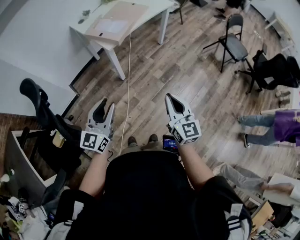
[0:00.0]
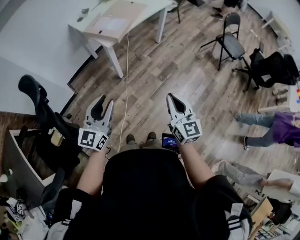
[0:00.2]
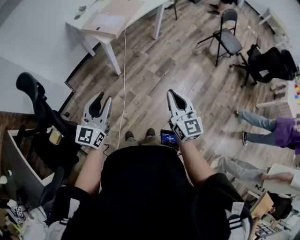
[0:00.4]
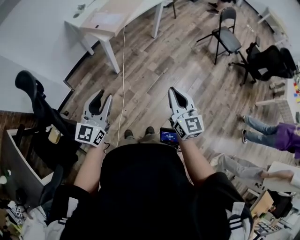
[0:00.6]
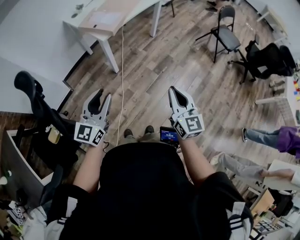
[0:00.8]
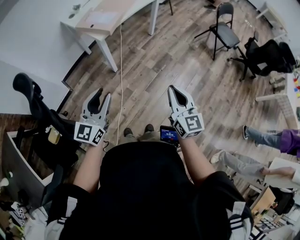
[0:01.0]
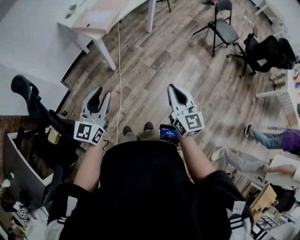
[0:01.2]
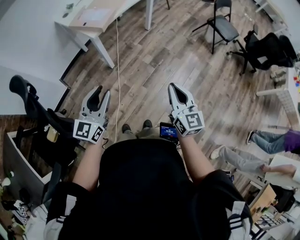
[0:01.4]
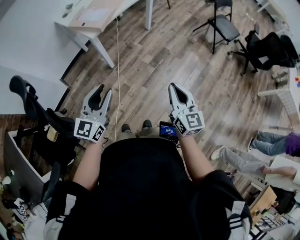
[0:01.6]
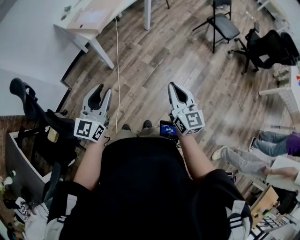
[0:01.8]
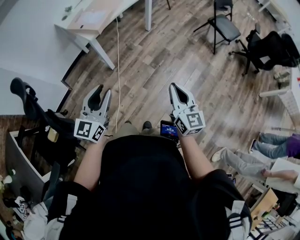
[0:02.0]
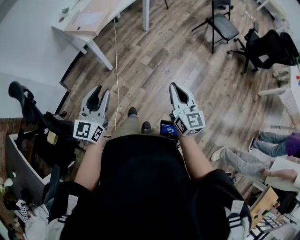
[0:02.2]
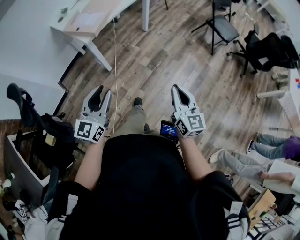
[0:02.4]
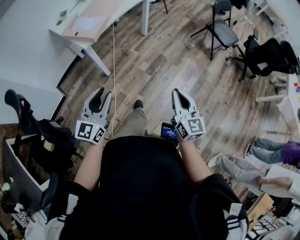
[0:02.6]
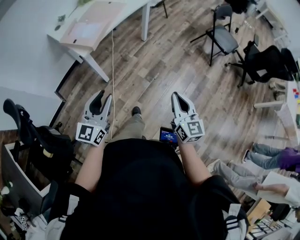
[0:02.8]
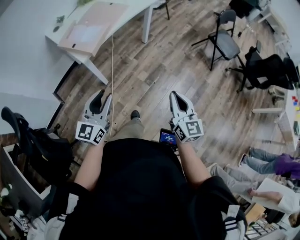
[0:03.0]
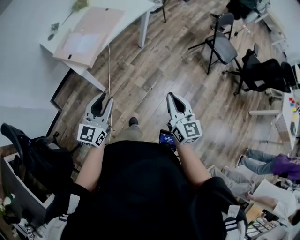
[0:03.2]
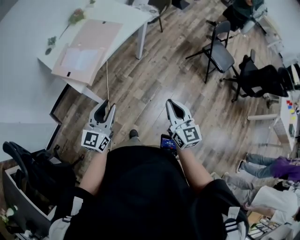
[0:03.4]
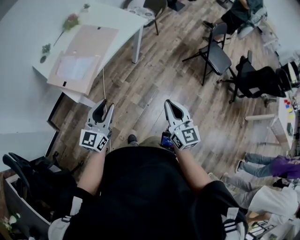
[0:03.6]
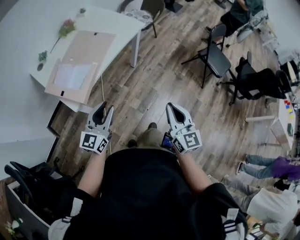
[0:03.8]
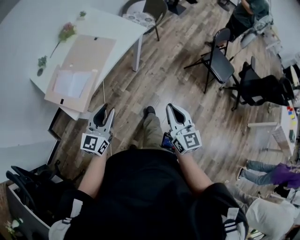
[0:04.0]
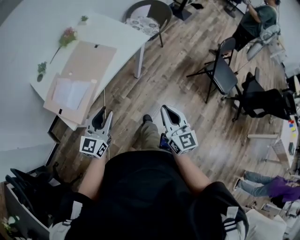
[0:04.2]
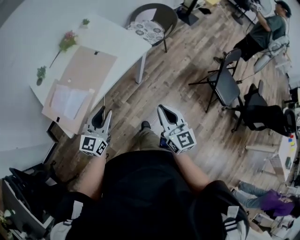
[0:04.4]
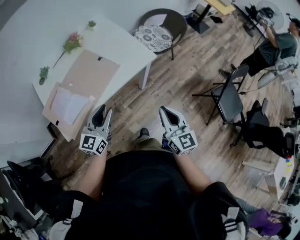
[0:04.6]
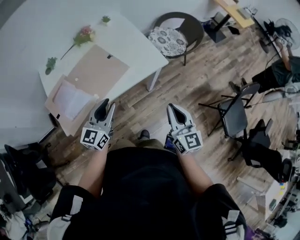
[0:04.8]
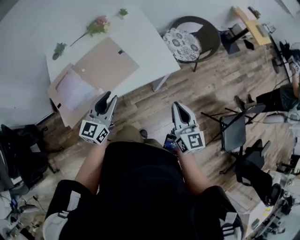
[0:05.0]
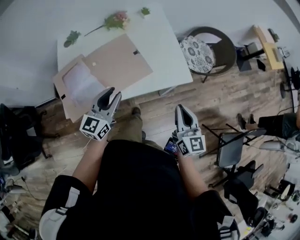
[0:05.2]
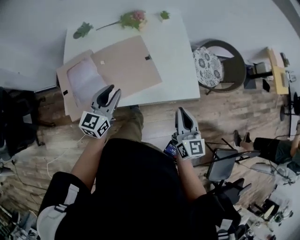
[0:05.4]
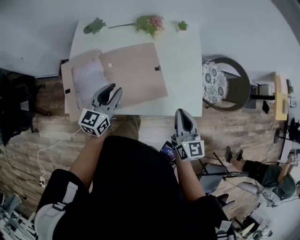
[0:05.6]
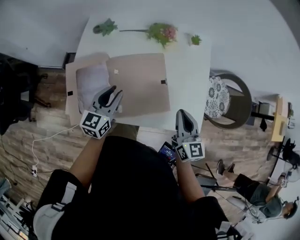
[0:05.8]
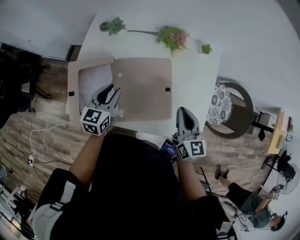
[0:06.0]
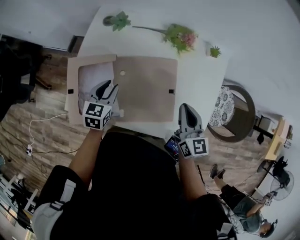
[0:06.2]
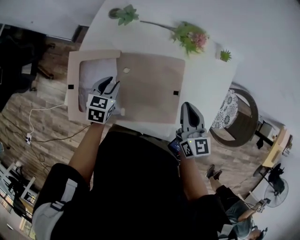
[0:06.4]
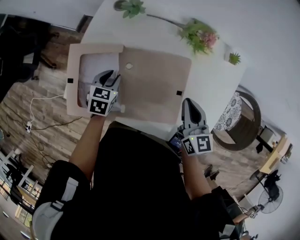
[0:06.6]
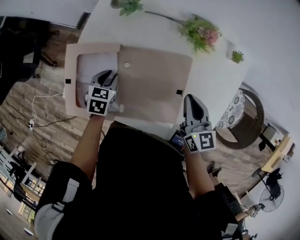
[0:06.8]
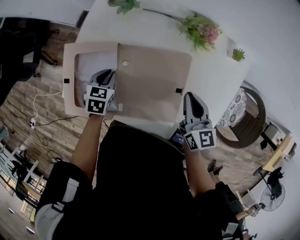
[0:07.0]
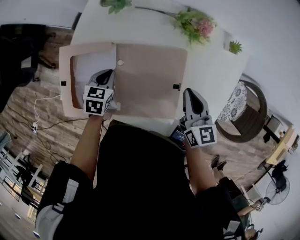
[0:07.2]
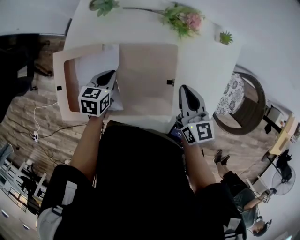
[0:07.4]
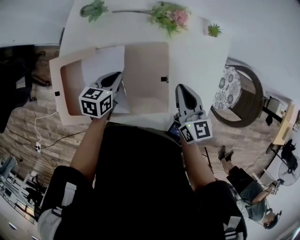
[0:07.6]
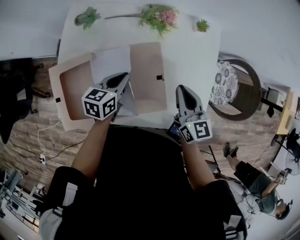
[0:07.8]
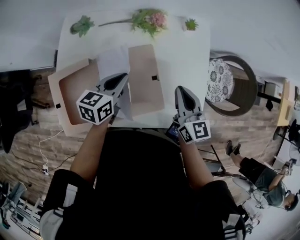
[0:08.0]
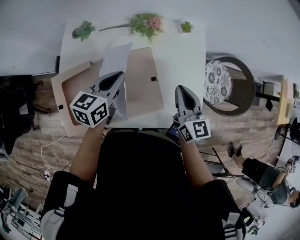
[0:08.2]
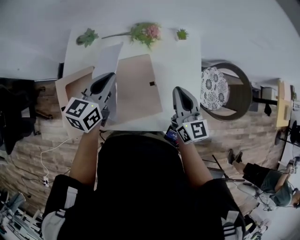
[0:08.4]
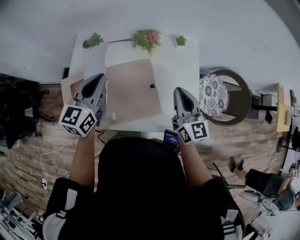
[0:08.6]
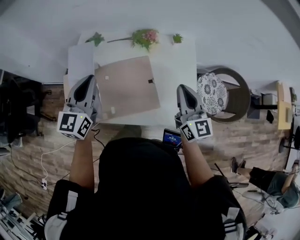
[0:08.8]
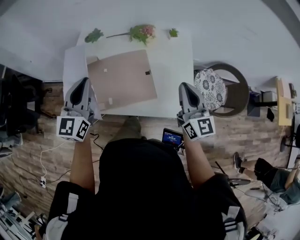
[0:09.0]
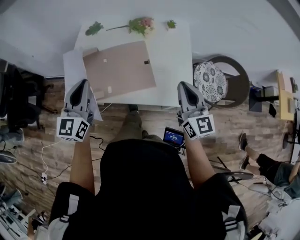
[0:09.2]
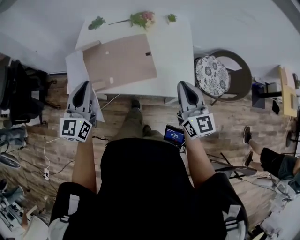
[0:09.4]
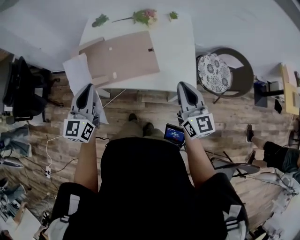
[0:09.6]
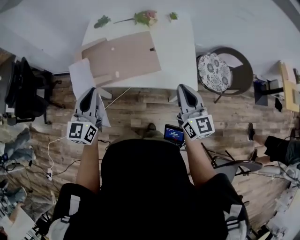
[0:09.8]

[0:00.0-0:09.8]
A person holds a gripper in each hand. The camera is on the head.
0:00.0 to 0:01.4: The left gripper ends up approximately 5 cm from where it was; the right gripper is displaced to the right and backward by roughly 10 cm.
0:01.4 to 0:02.8: The right gripper moves forward and to the right, about 15 cm, while the left gripper travels forward by roughly 15 cm.
0:02.8 to 0:04.2: The pair of grippers is taken forward, approximately 40 cm.
0:04.2 to 0:05.6: The left gripper ends up some 30 cm from where it was, and rotates some 50 degrees. Meanwhile the right gripper shifts by roughly 40 cm, and swivels about 40 degrees.
0:05.6 to 0:07.0: The left gripper moves downward, roughly 15 cm, and angles its fingers downward, by approximately 50 degrees; the right gripper moves roughly 25 cm, and changes its angle by about 30 degrees.
0:07.0 to 0:08.4: The left gripper heads upward, covering approximately 25 cm, and angles its fingers upward, by about 40 degrees. Meanwhile the right gripper goes about 10 cm upward, and turns by roughly 20 degrees.
0:08.4 to 0:09.8: Both grippers move backward, some 30 cm. The left gripper swivels about 30 degrees.

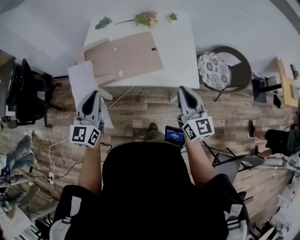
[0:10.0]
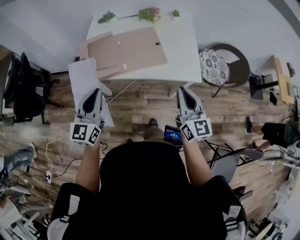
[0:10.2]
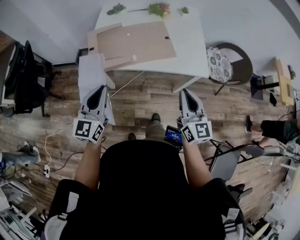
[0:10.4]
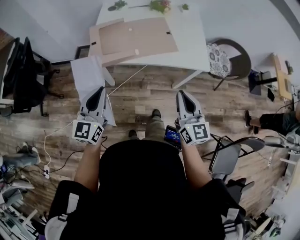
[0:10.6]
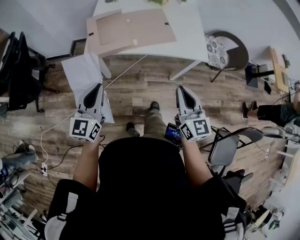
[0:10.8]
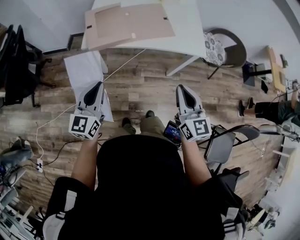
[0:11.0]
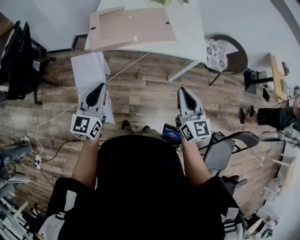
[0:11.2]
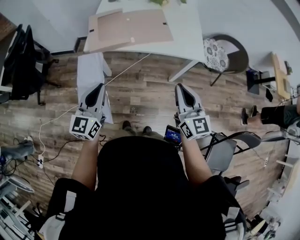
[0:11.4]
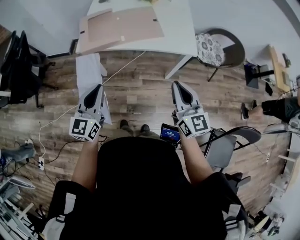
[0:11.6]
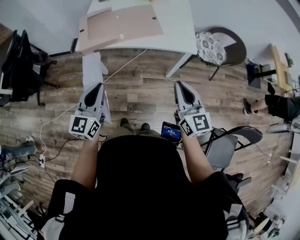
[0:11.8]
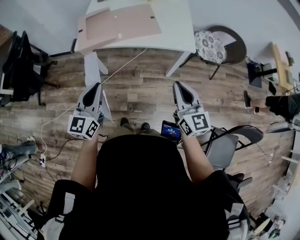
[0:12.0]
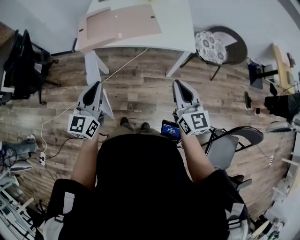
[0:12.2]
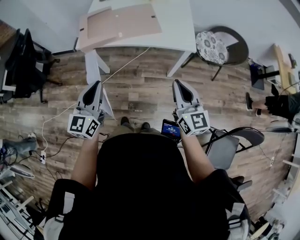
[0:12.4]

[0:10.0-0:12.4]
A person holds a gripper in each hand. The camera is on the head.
0:10.0 to 0:11.2: Both grippers move backward and to the left, about 20 cm.
0:11.2 to 0:12.4: The grippers both shift to the right by some 10 cm.

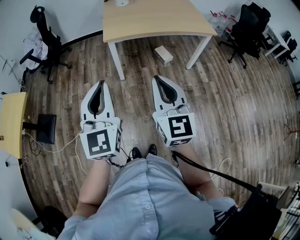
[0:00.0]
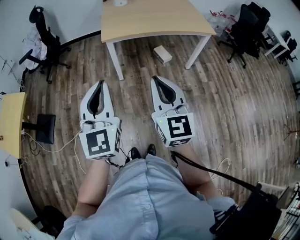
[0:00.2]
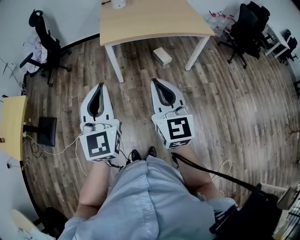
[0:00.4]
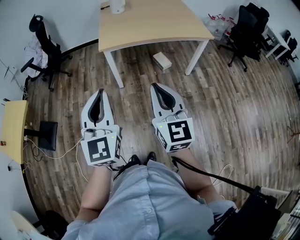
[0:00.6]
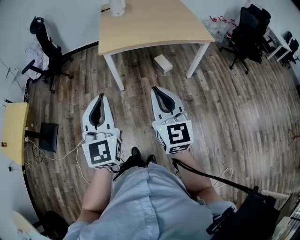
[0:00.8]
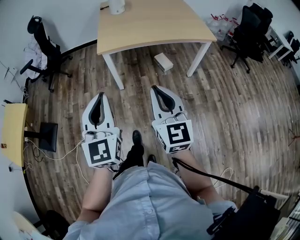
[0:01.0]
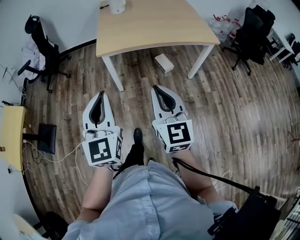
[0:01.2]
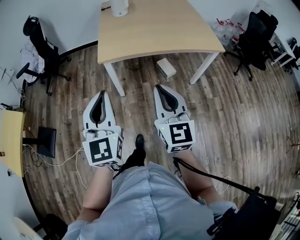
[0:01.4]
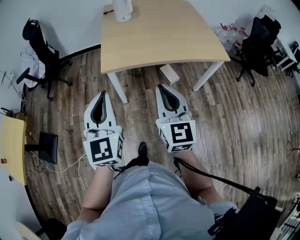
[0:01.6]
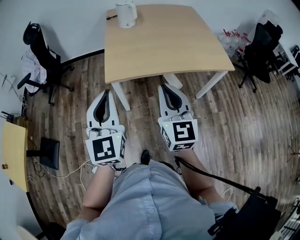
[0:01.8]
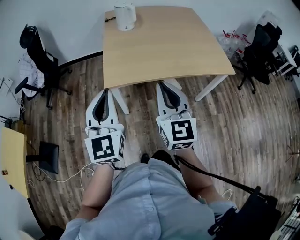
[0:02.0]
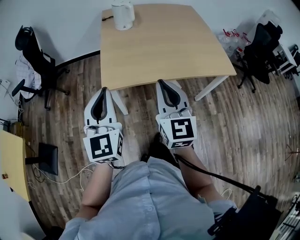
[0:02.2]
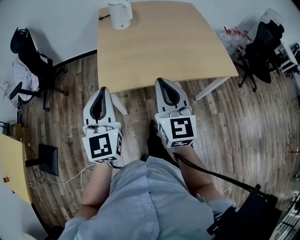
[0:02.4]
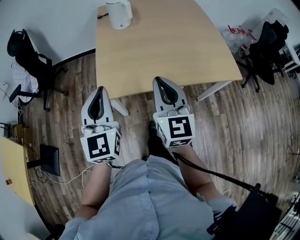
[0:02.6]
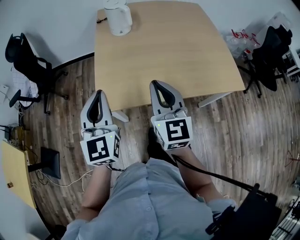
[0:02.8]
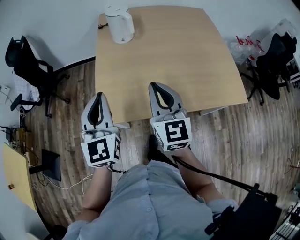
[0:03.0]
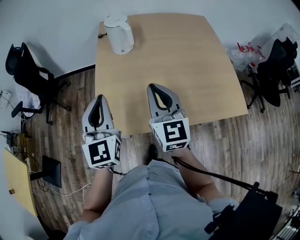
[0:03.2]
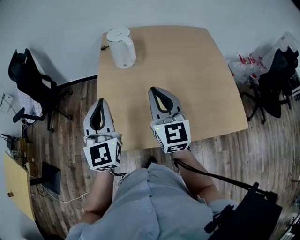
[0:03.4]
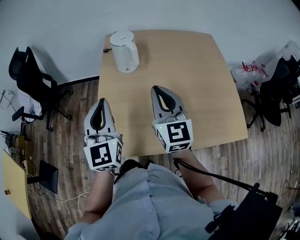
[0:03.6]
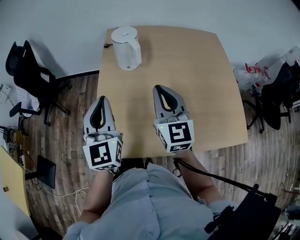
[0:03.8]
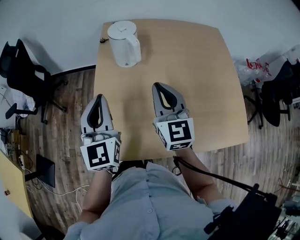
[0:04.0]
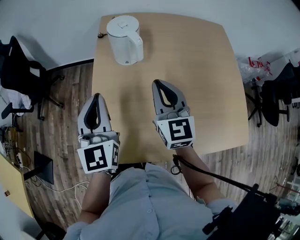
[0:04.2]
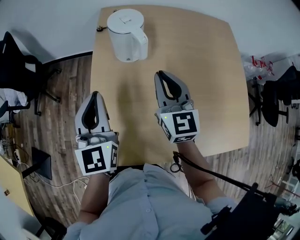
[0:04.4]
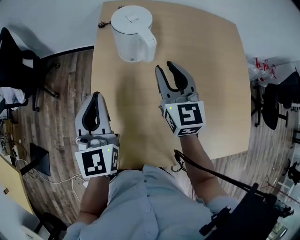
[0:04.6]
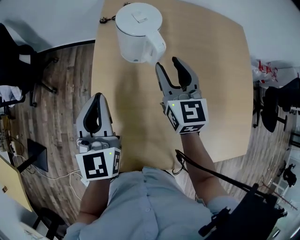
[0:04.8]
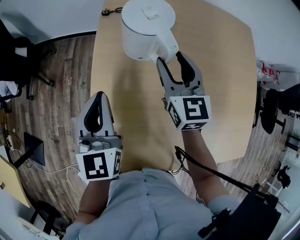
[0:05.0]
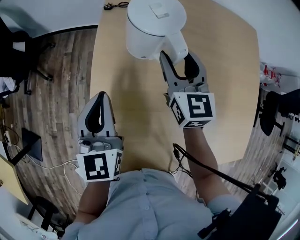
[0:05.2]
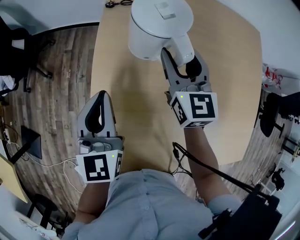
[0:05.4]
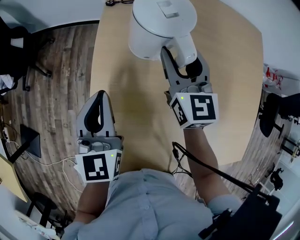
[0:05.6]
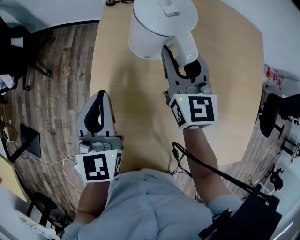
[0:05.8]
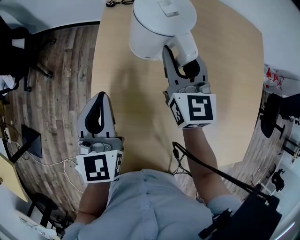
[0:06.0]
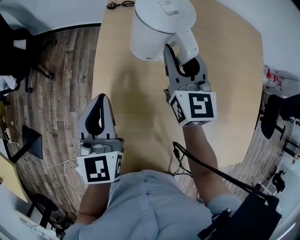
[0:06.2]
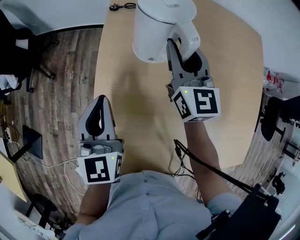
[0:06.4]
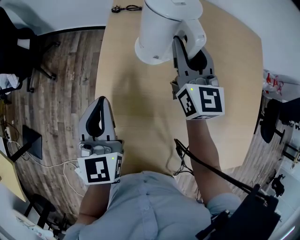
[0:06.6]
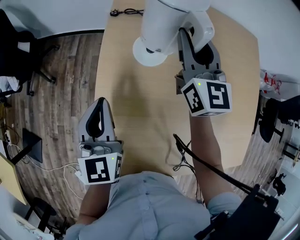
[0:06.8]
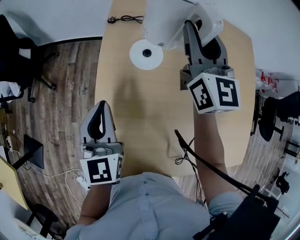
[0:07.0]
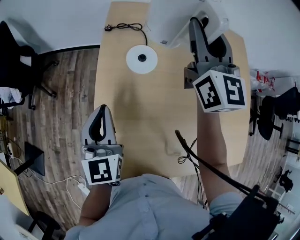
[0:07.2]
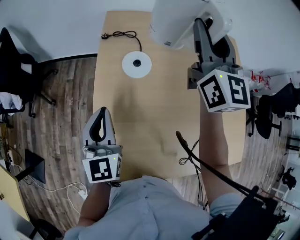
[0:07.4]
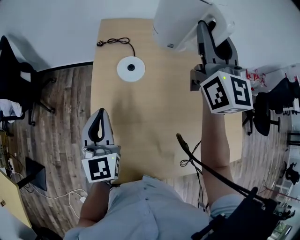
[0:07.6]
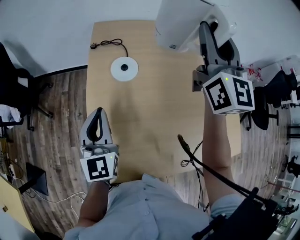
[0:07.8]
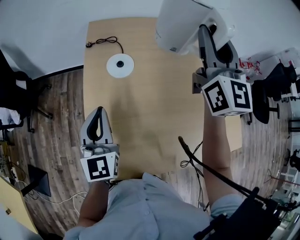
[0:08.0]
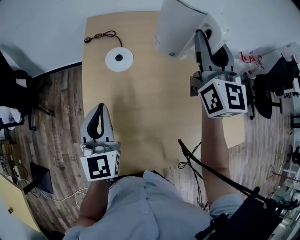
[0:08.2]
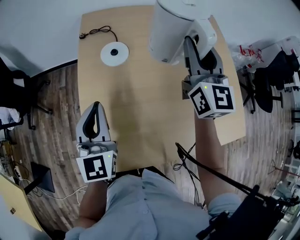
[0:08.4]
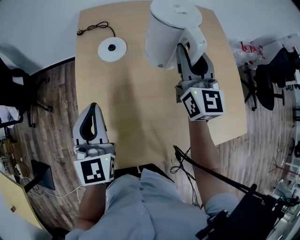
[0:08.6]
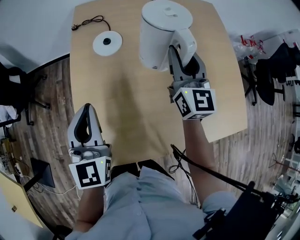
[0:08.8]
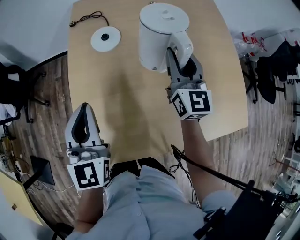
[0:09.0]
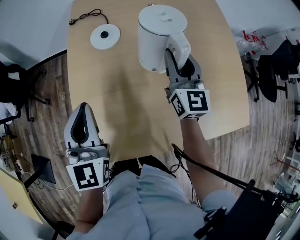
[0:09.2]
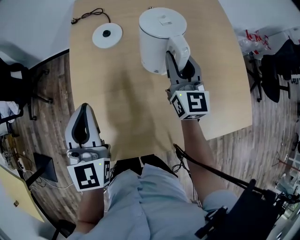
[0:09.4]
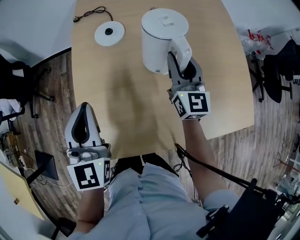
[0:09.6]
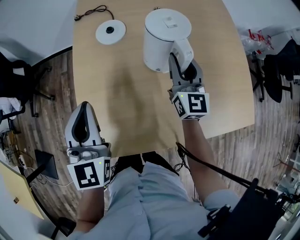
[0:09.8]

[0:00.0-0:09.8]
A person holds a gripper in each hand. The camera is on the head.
0:00.0 to 0:01.4: The grippers both shift forward by some 15 cm.
0:01.4 to 0:02.8: The grippers both shift forward by some 35 cm.
0:02.8 to 0:04.2: Both grippers move forward, some 25 cm.
0:04.2 to 0:05.6: The left gripper travels forward and downward by approximately 15 cm; the right gripper moves forward, about 20 cm, and opens its fingers.
0:05.6 to 0:07.0: The right gripper shifts about 15 cm upward, and closes.
0:07.0 to 0:08.4: The left gripper is displaced to the right and backward by roughly 10 cm; the right gripper moves backward and to the right, some 20 cm.
0:08.4 to 0:09.8: The left gripper shifts about 5 cm backward. The right gripper travels downward by approximately 15 cm.

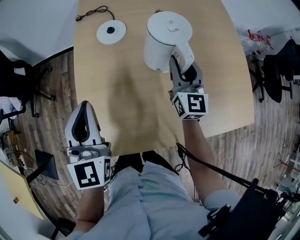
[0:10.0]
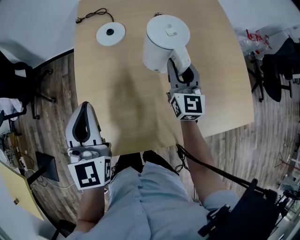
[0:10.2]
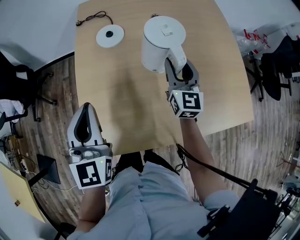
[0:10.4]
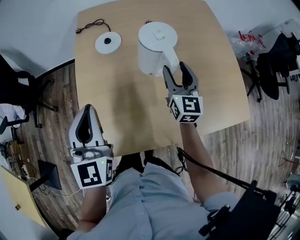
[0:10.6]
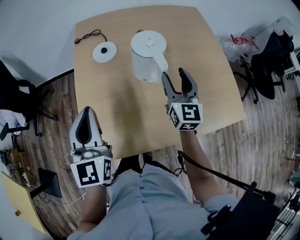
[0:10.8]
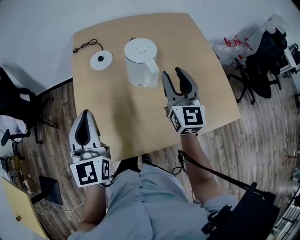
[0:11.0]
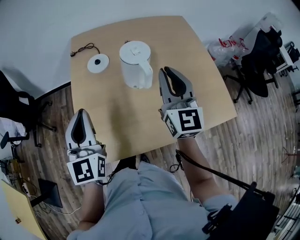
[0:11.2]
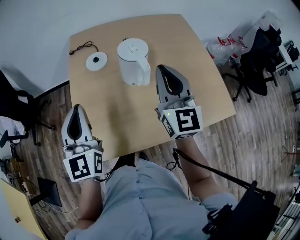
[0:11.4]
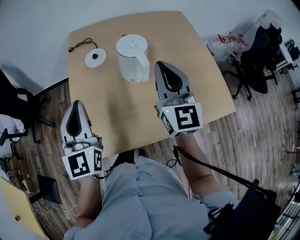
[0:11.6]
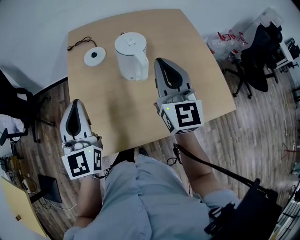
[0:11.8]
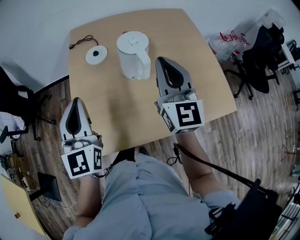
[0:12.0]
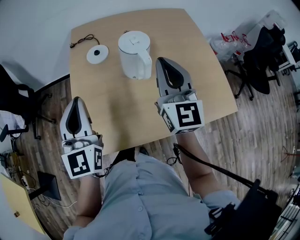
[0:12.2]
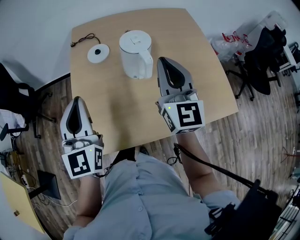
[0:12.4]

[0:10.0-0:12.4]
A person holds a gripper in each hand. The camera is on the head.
0:10.0 to 0:11.2: The left gripper travels upward by some 5 cm, while the right gripper is displaced upward and backward by about 15 cm, and opens, then closes once more.
0:11.2 to 0:12.4: The grippers make only small movements.
